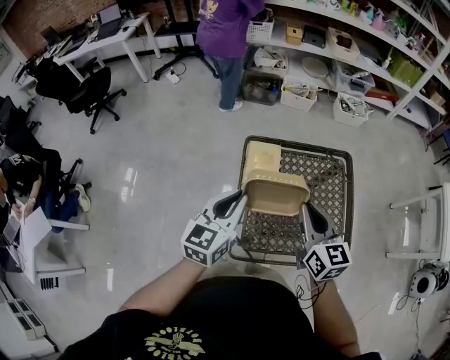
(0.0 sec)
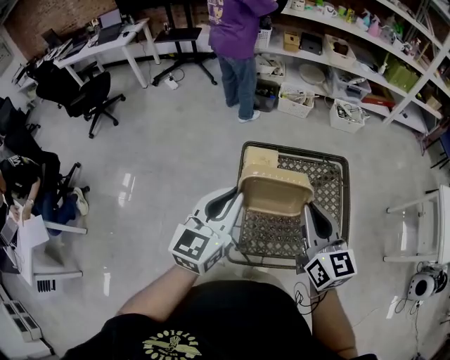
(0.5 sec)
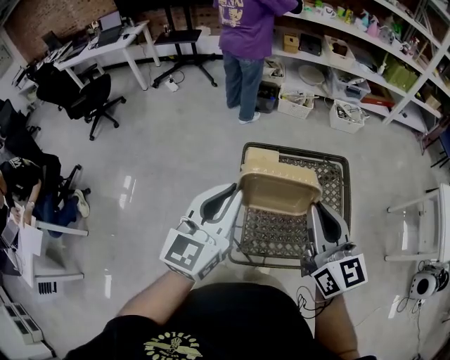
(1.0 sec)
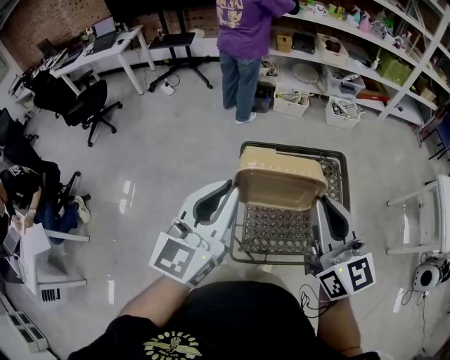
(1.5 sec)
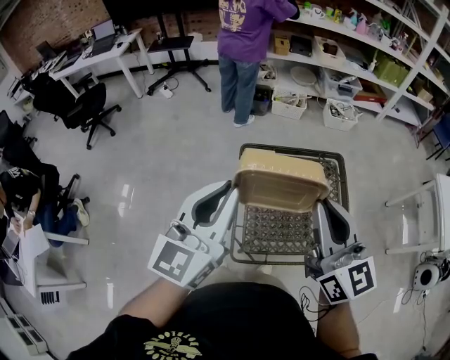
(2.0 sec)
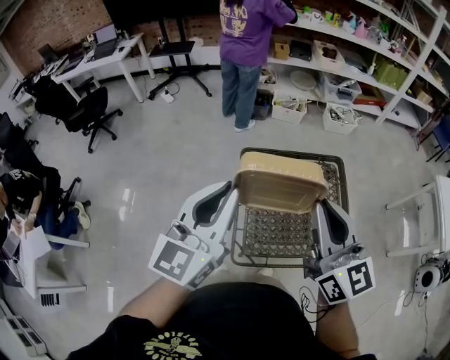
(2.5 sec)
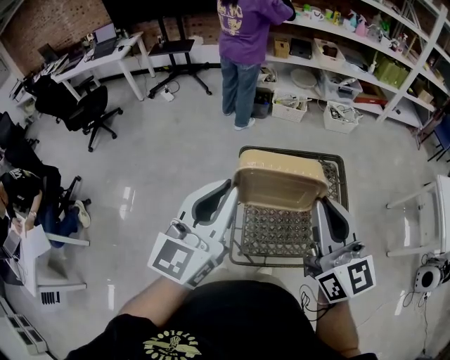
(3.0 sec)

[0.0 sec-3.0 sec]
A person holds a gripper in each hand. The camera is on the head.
0.0 sec to 1.5 sec: Both grippers move upward, approximately 15 cm.
1.5 sec to 3.0 sec: There are only small adjustments of the grippers.

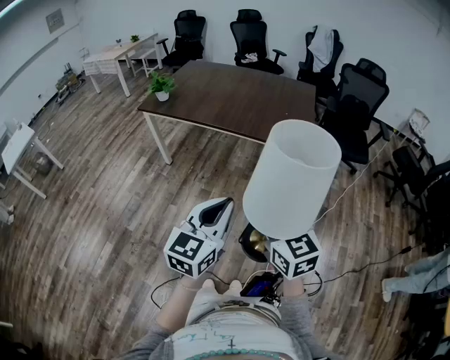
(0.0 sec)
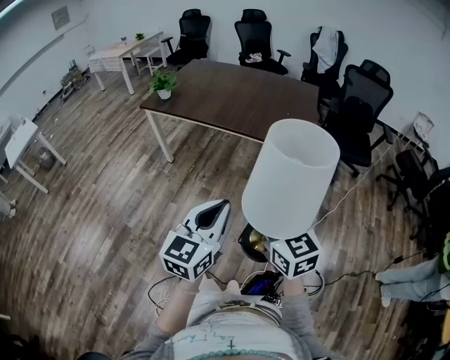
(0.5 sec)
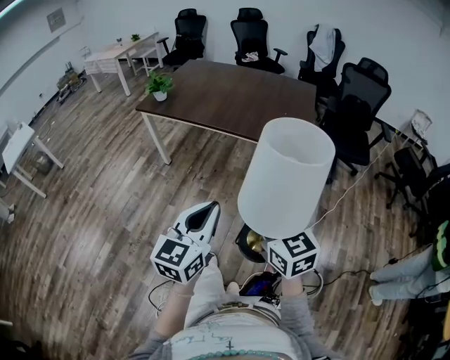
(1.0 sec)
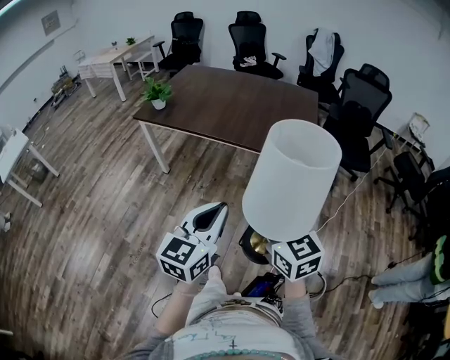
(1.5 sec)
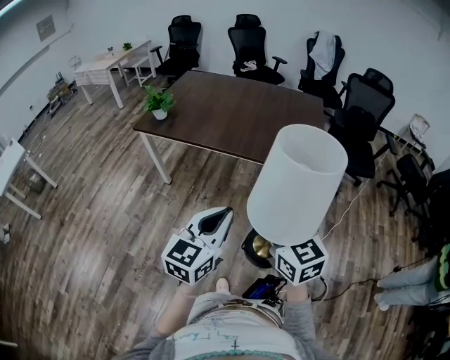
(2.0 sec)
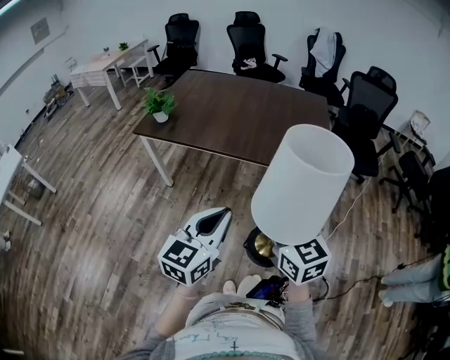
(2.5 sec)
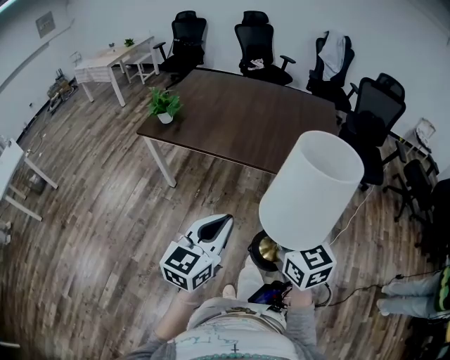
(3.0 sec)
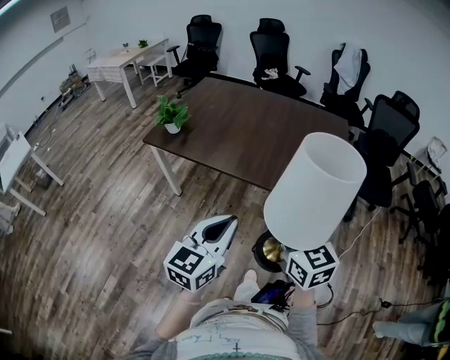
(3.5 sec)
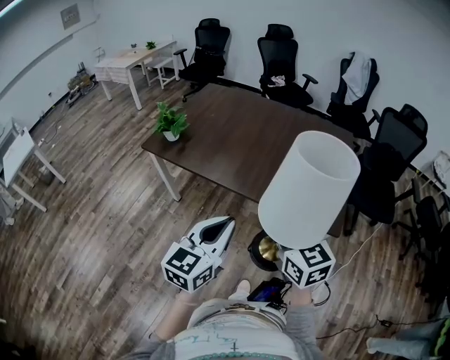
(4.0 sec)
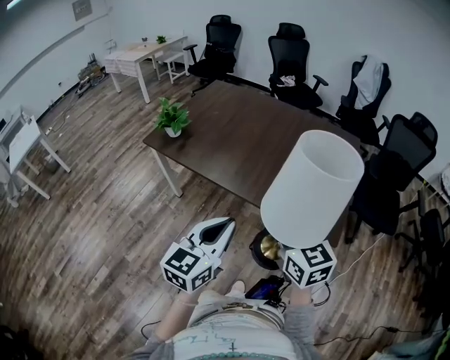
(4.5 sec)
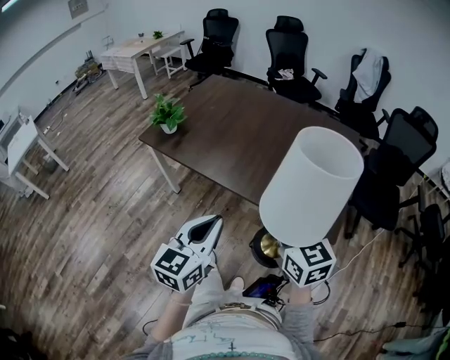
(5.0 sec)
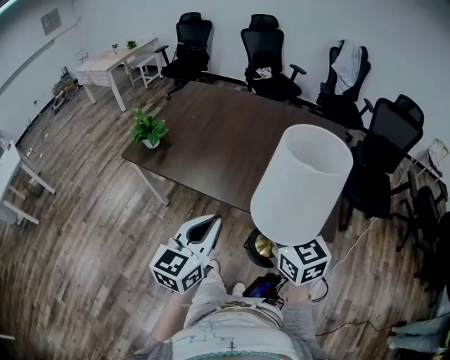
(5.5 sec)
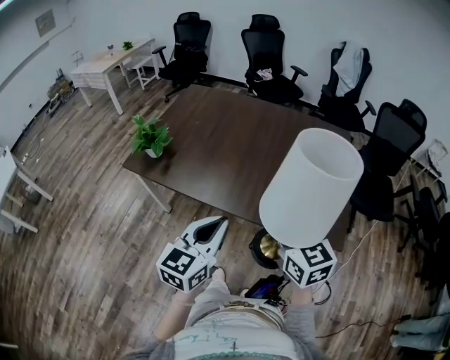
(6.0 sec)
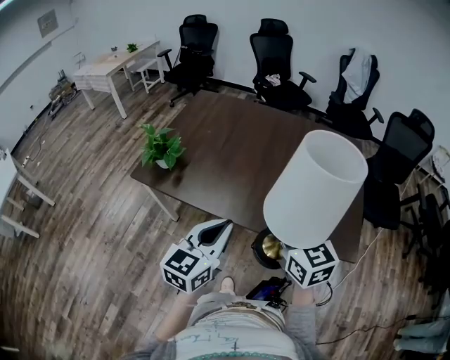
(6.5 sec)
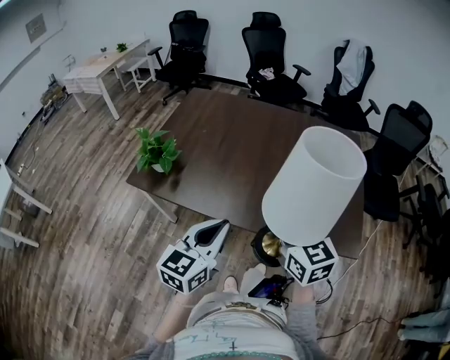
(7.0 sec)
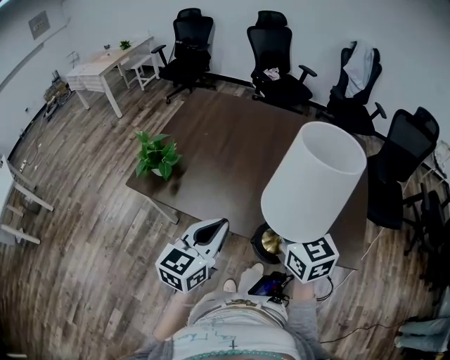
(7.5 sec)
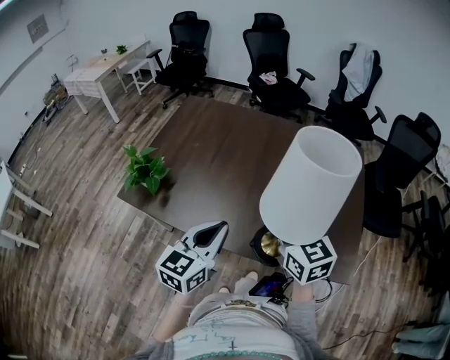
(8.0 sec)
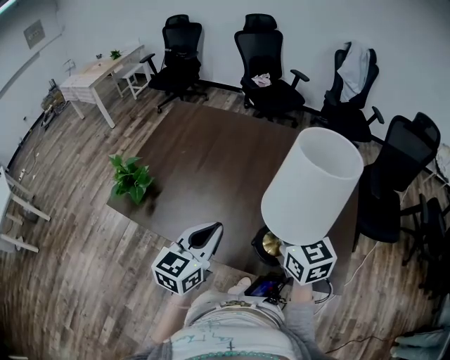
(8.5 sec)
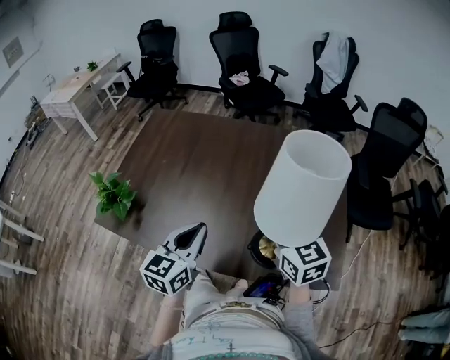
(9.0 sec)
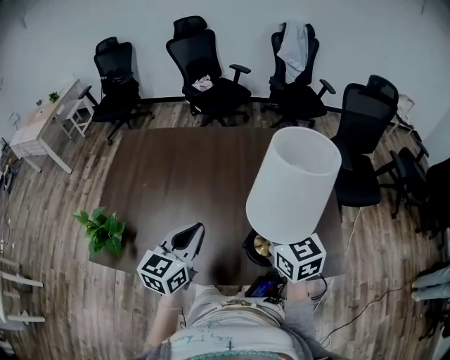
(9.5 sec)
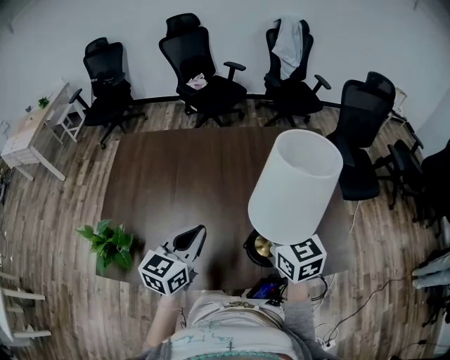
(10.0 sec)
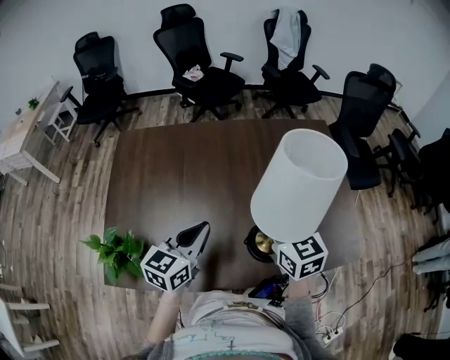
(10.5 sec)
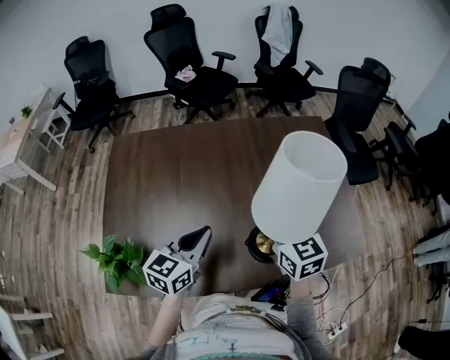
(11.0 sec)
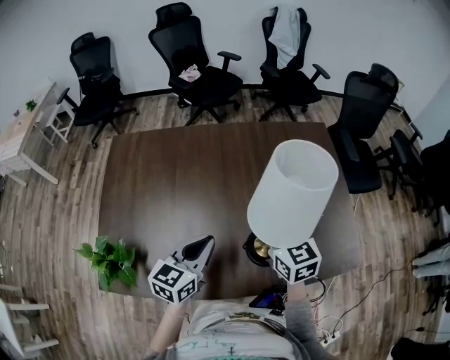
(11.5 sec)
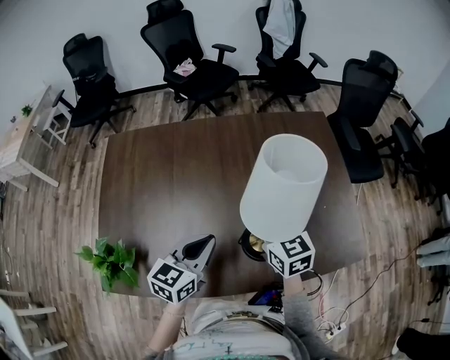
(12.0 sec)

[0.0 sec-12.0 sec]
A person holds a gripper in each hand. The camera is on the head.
0.0 sec to 2.0 sec: Both grippers move forward and to the left, some 15 cm.
2.0 sec to 4.0 sec: The two grippers go about 20 cm forward.
4.0 sec to 6.0 sec: Both grippers move forward, approximately 15 cm.
6.0 sec to 8.0 sec: Both grippers travel together forward, roughly 20 cm.
8.0 sec to 10.0 sec: The two grippers go approximately 15 cm forward. The right gripper turns by some 20 degrees.
10.0 sec to 12.0 sec: The two grippers go approximately 5 cm downward.

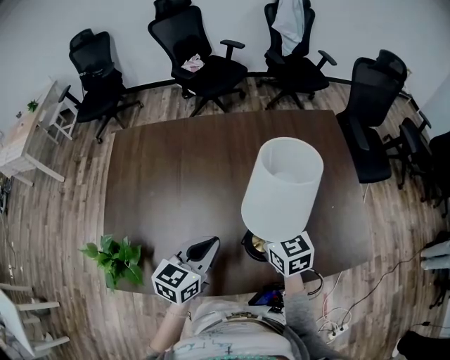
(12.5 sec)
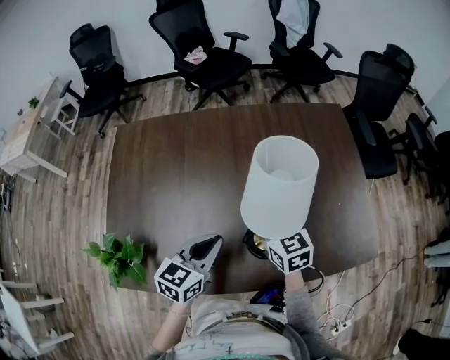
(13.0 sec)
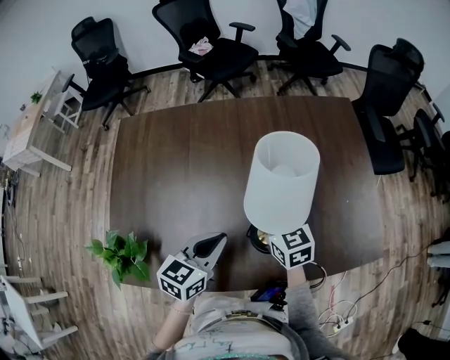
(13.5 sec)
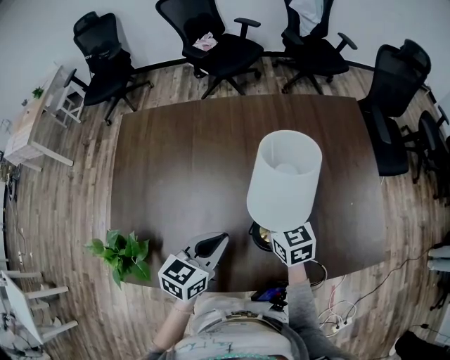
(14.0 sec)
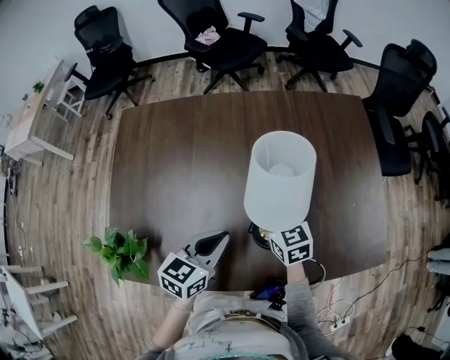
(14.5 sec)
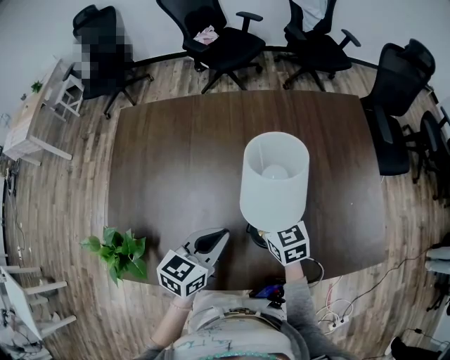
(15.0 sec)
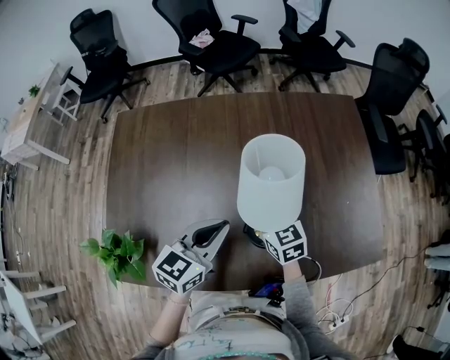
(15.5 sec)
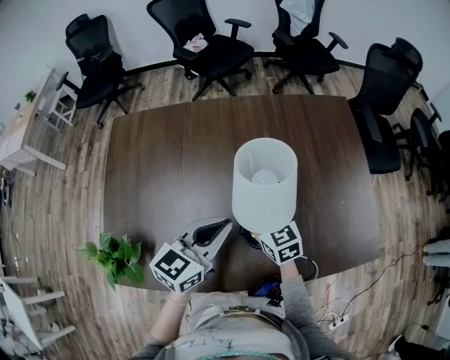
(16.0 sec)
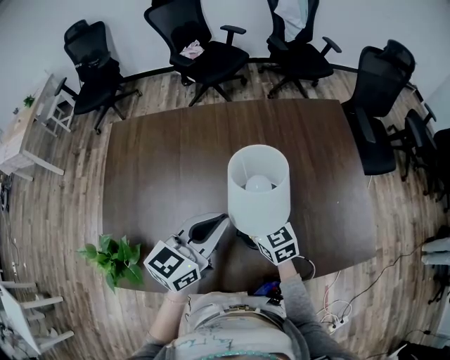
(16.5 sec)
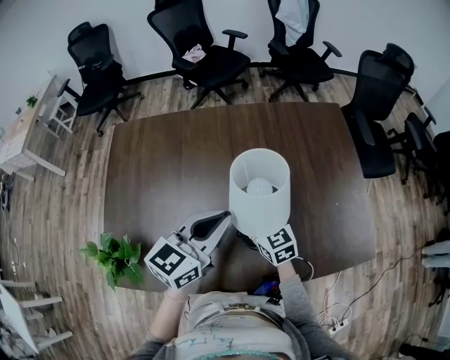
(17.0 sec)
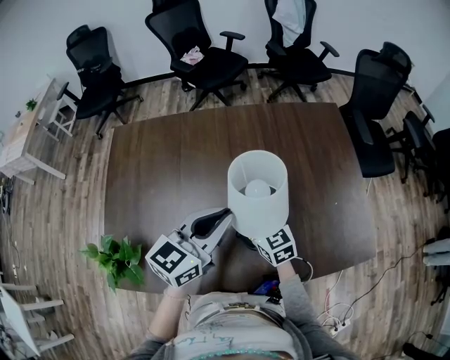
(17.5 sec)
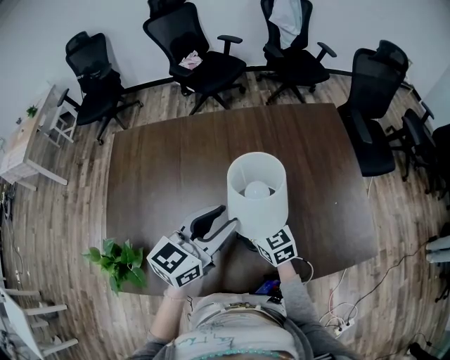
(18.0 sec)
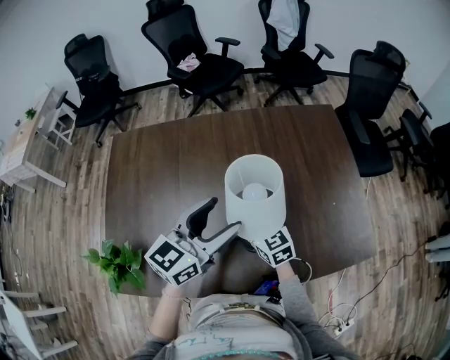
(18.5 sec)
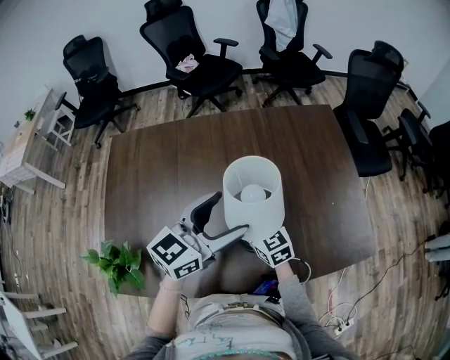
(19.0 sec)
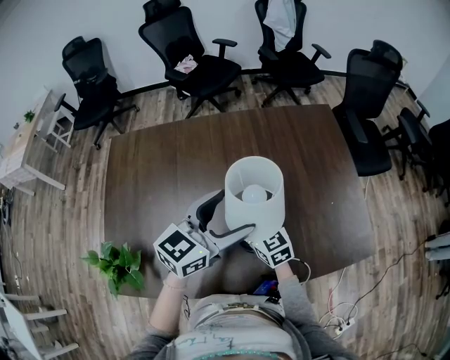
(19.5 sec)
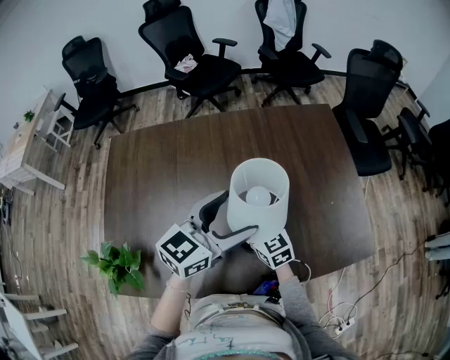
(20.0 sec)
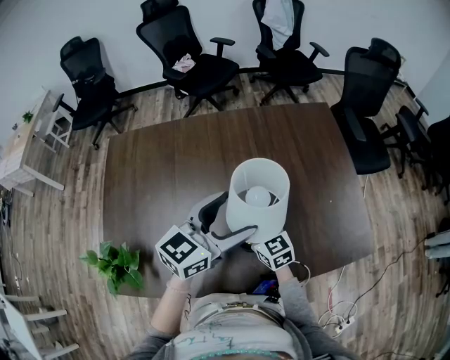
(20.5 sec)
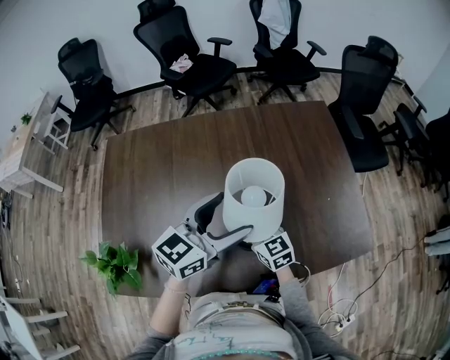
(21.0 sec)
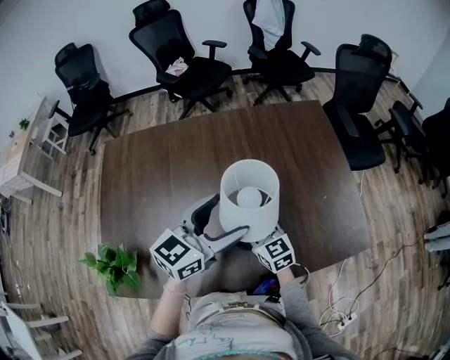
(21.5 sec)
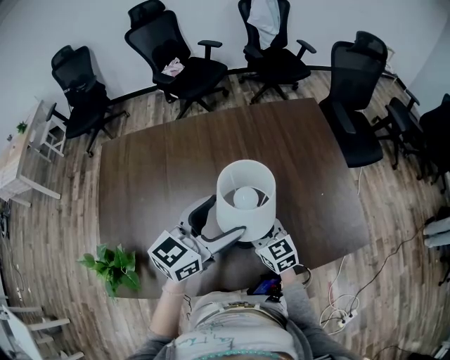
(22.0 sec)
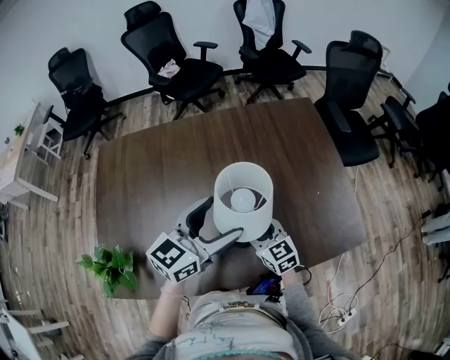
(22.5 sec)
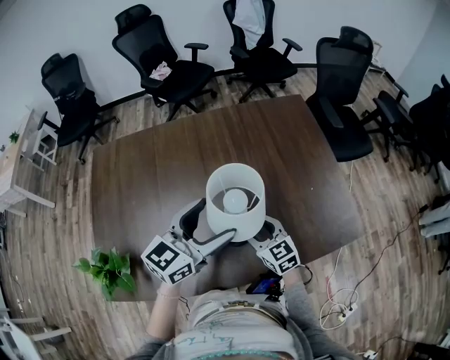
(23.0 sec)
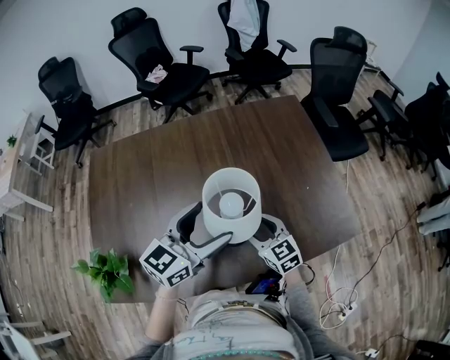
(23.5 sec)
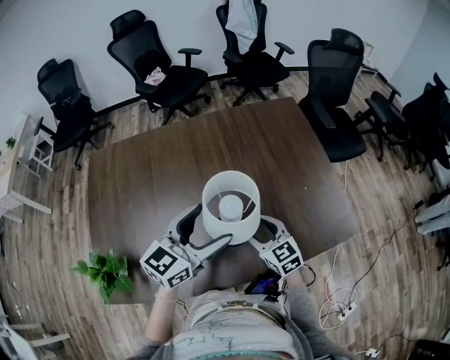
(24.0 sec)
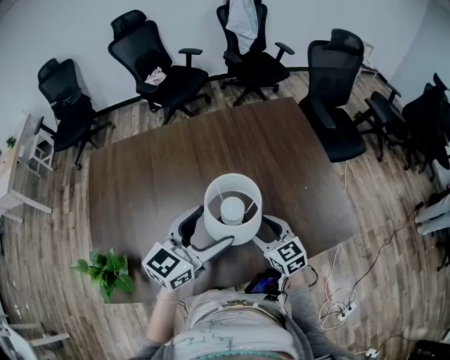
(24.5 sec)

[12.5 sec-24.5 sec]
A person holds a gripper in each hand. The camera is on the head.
12.5 sec to 14.5 sec: The right gripper goes about 10 cm downward.
14.5 sec to 16.5 sec: The left gripper shifts approximately 10 cm upward.
16.5 sec to 18.5 sec: The left gripper opens up.
18.5 sec to 20.5 sec: There are only small adjustments of the grippers.
20.5 sec to 22.5 sec: The right gripper travels to the right by about 5 cm, and opens up.
22.5 sec to 24.5 sec: The right gripper moves to the right, some 5 cm.
